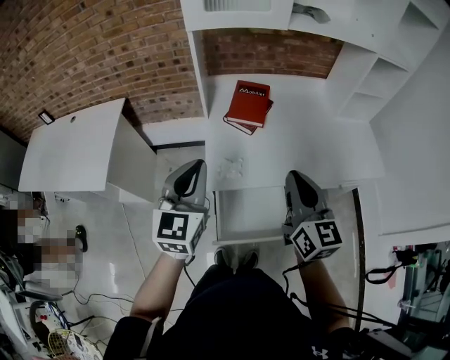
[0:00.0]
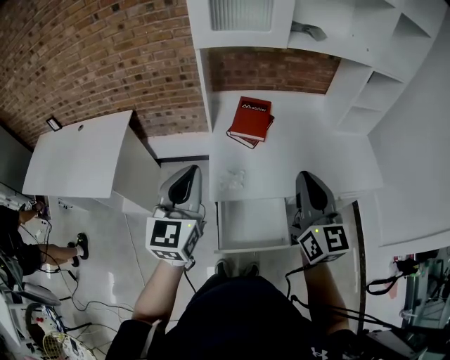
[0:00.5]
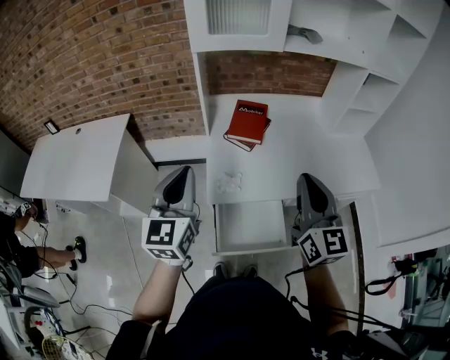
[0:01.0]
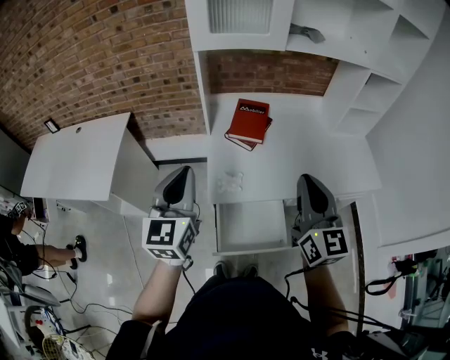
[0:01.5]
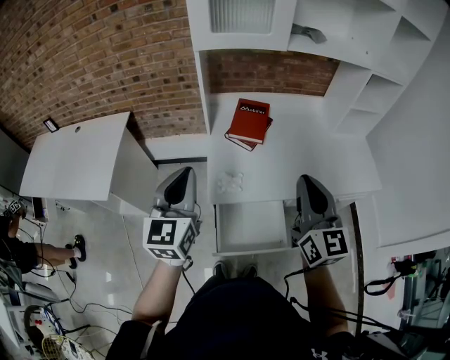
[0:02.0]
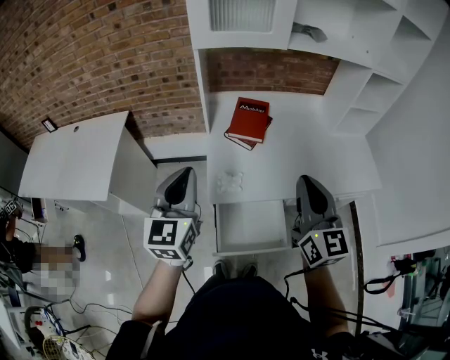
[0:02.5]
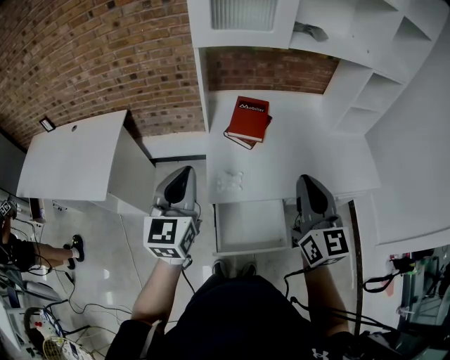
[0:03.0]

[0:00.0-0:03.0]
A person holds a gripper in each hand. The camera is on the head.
0:00.0 to 0:01.5: The right gripper heads upward, covering approximately 5 cm. Meanwhile the left gripper shifts by roughly 5 cm.
0:01.5 to 0:03.0: The grippers move only a little.

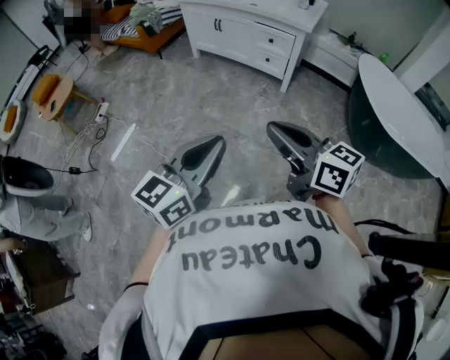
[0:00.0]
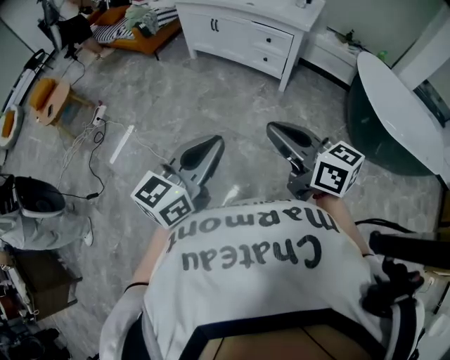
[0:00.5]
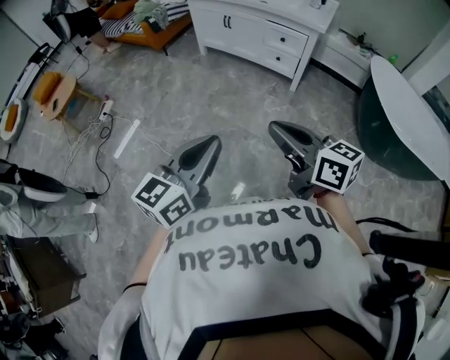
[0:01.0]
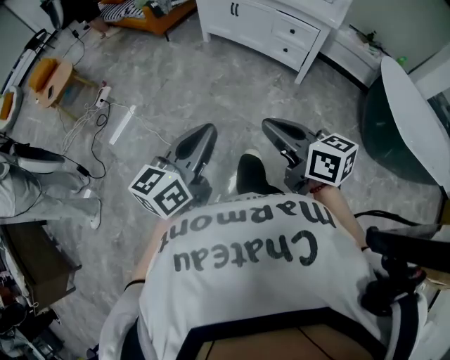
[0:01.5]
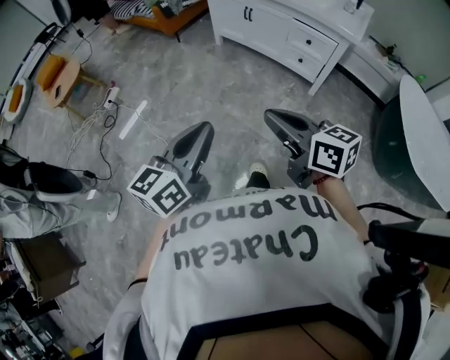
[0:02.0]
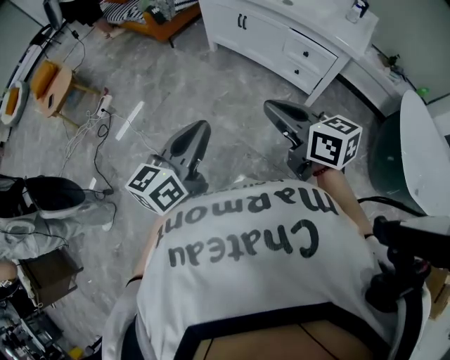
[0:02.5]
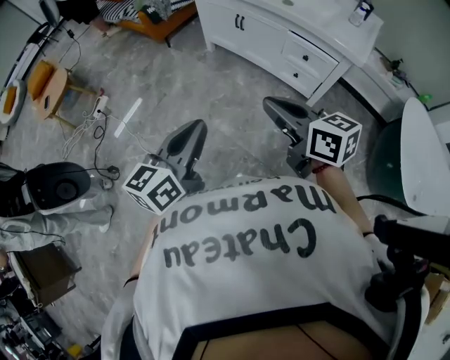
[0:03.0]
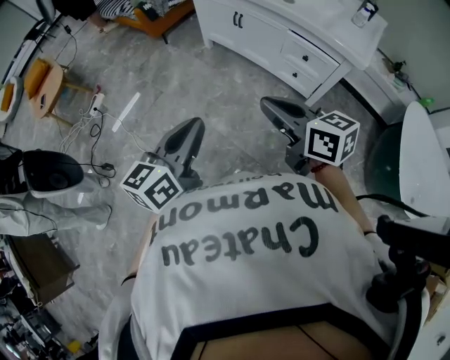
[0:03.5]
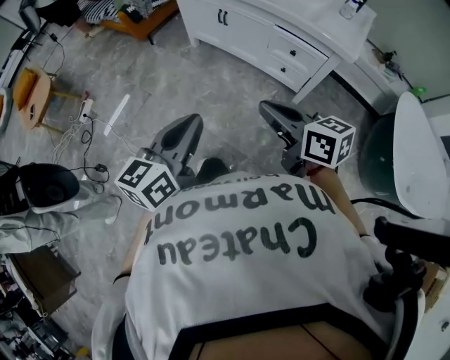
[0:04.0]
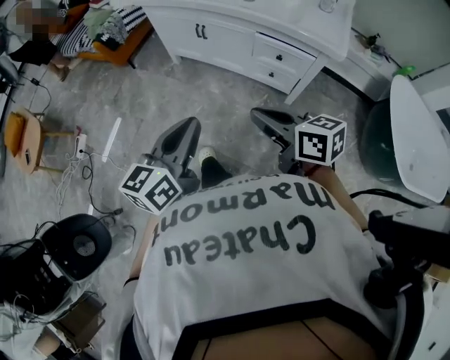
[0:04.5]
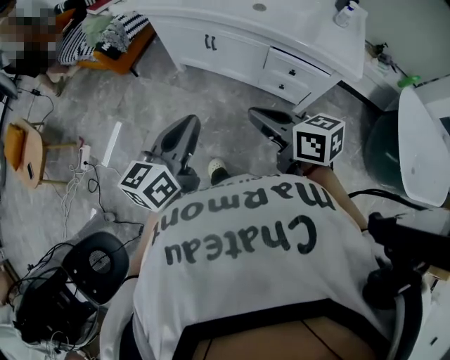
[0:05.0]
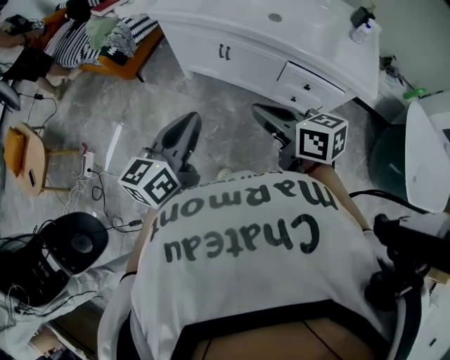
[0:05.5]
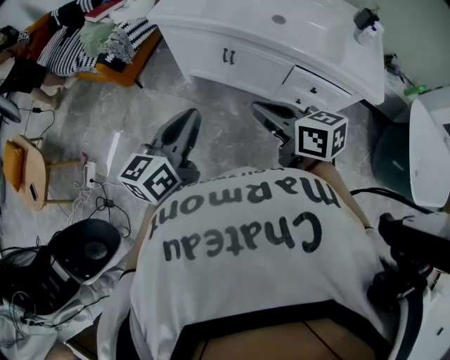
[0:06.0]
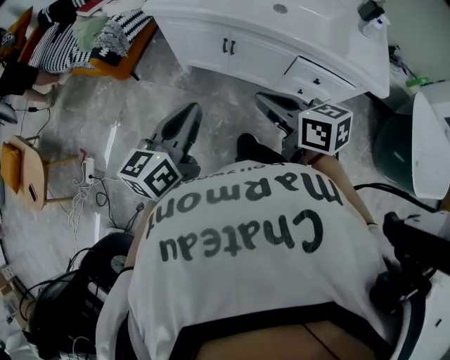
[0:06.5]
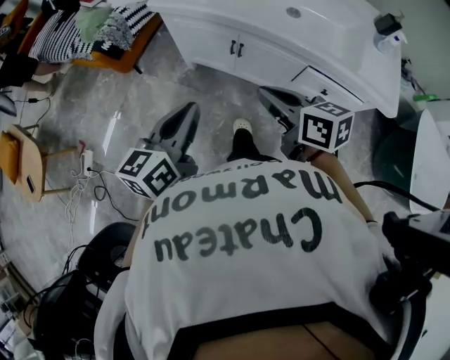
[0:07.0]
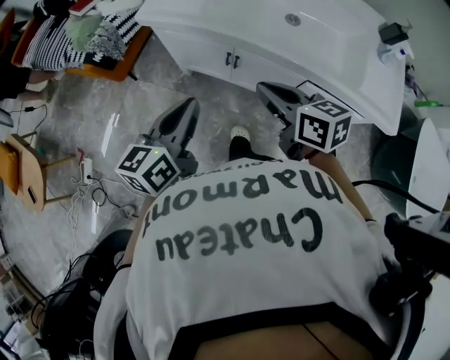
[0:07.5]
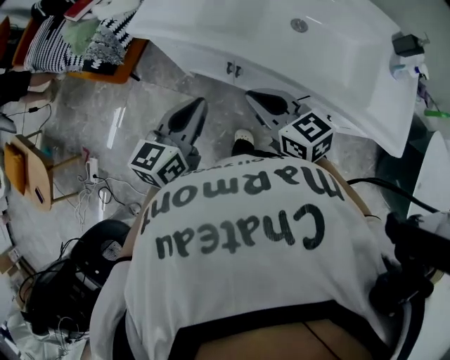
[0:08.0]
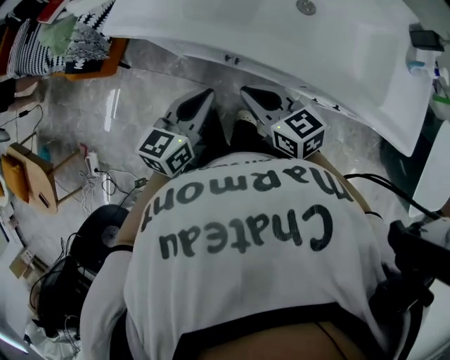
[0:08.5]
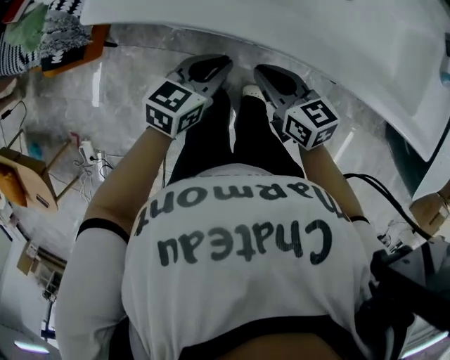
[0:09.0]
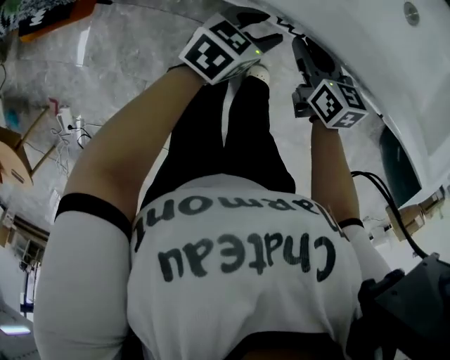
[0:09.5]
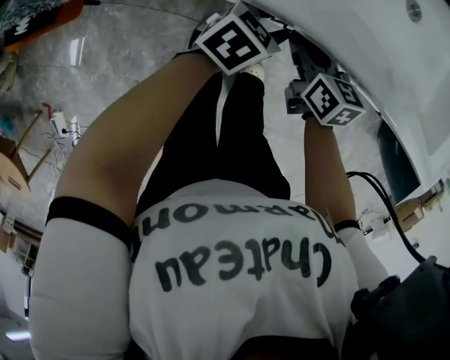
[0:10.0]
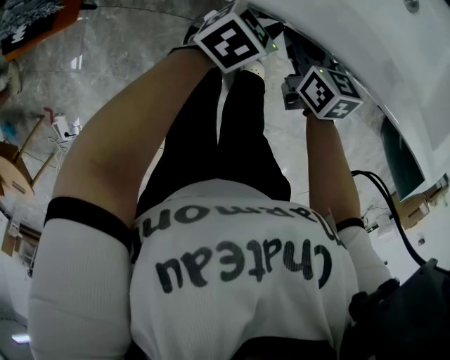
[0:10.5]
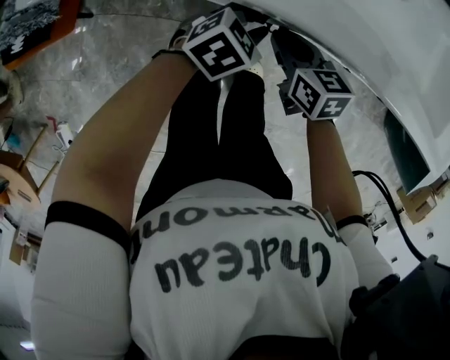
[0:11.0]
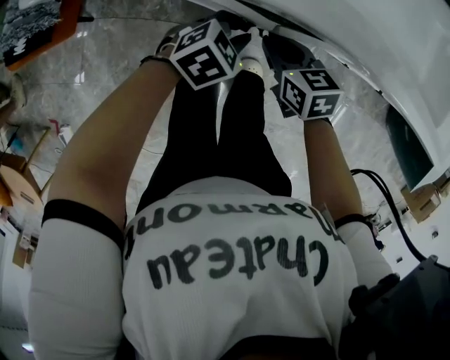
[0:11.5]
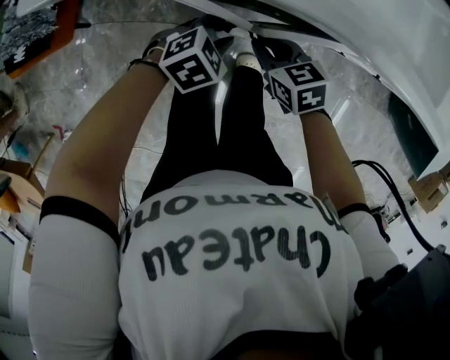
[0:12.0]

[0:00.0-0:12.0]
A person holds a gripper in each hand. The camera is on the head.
0:00.0 to 0:02.0: The right gripper moves forward, some 20 cm, while the left gripper is displaced forward and to the left by about 25 cm.
0:02.0 to 0:04.0: The grippers both shift forward and to the right by roughly 25 cm.
0:04.0 to 0:06.0: The right gripper goes about 30 cm forward and to the left; the left gripper travels forward by about 35 cm.
0:06.0 to 0:08.0: The grippers both shift forward by roughly 25 cm.
0:08.0 to 0:10.0: Both grippers travel together downward, some 30 cm. The right gripper turns by roughly 40 degrees, and opens. Meanwhile the left gripper swivels approximately 50 degrees, and opens.
0:10.0 to 0:12.0: Both grippers travel together backward, about 10 cm. The right gripper changes its angle by roughly 20 degrees. Meanwhile the left gripper swivels some 30 degrees, and closes its fingers.

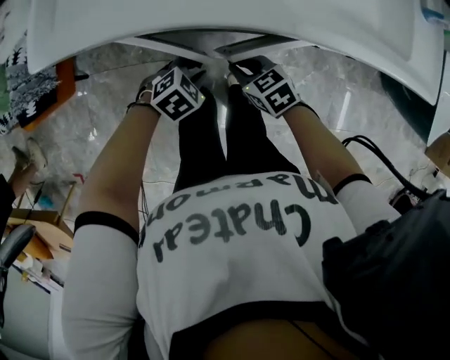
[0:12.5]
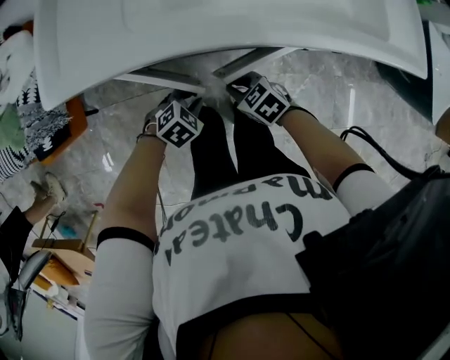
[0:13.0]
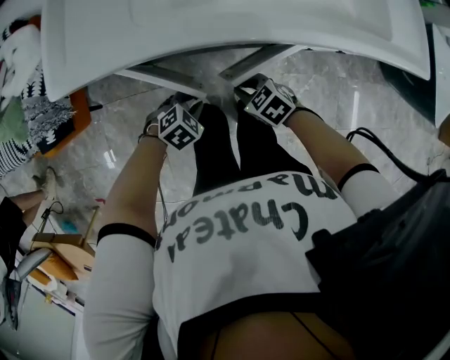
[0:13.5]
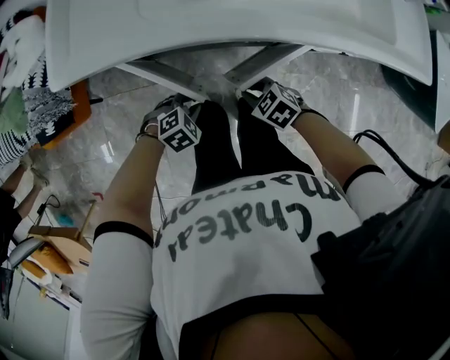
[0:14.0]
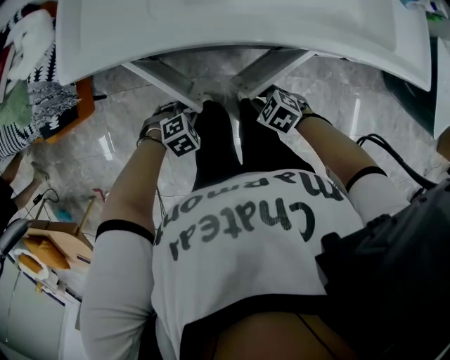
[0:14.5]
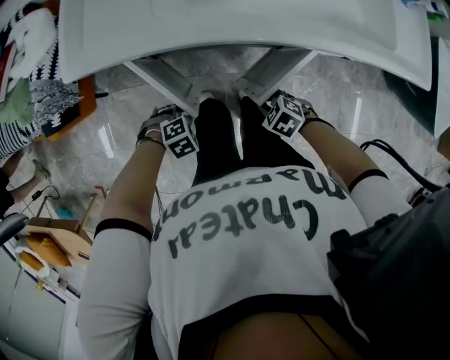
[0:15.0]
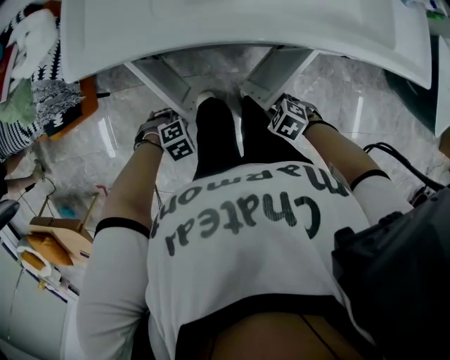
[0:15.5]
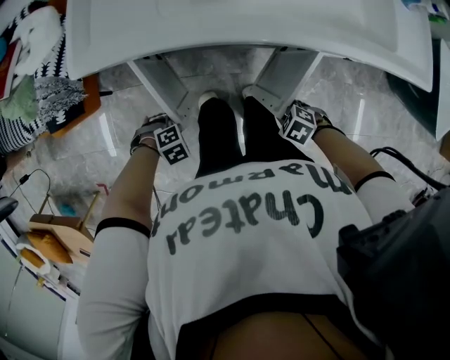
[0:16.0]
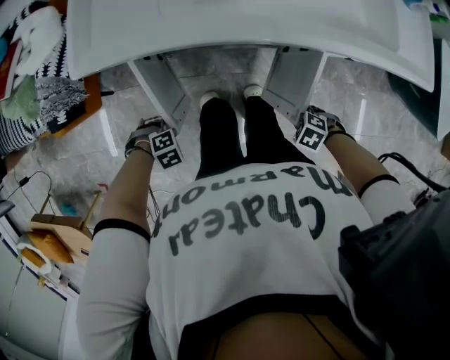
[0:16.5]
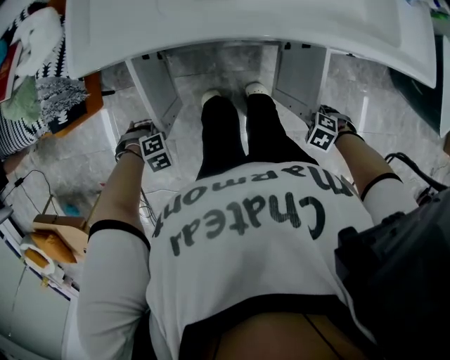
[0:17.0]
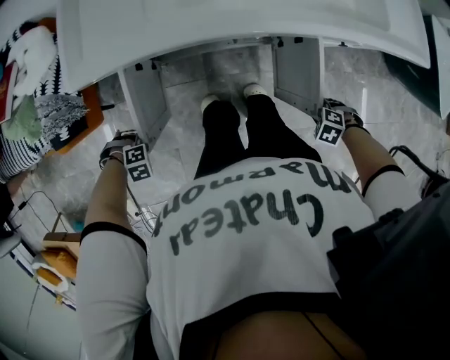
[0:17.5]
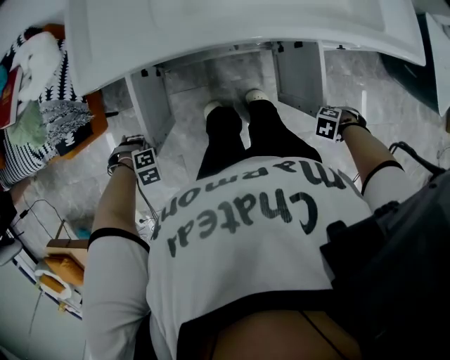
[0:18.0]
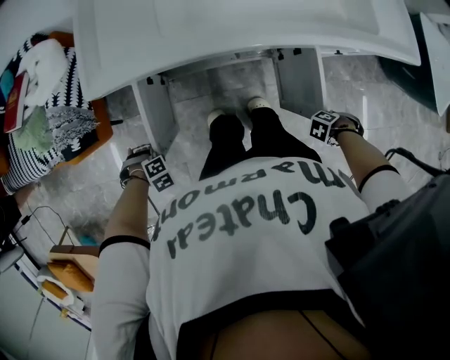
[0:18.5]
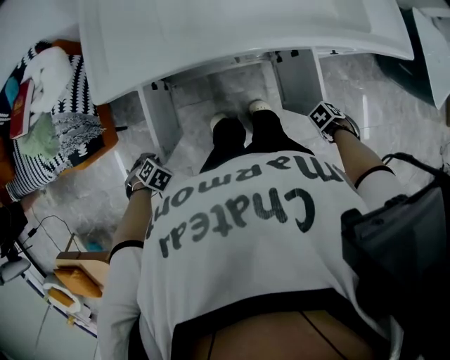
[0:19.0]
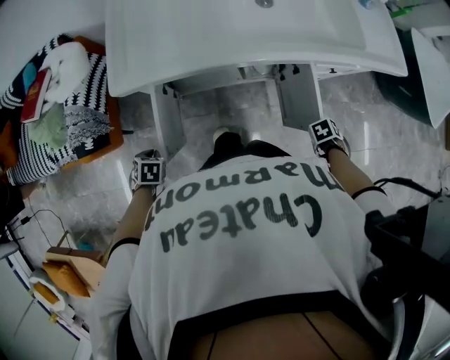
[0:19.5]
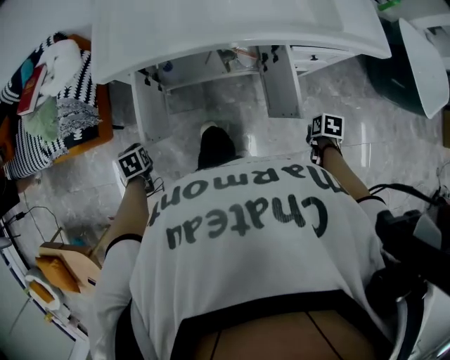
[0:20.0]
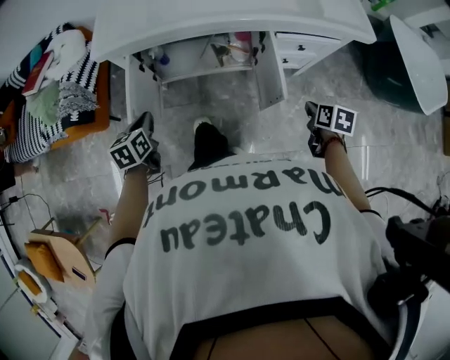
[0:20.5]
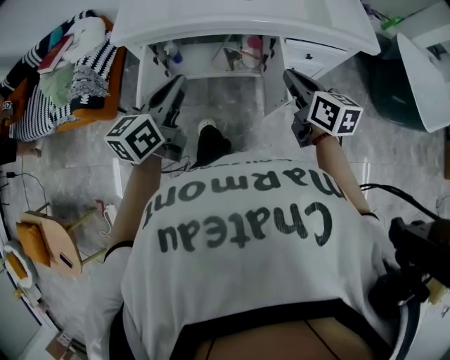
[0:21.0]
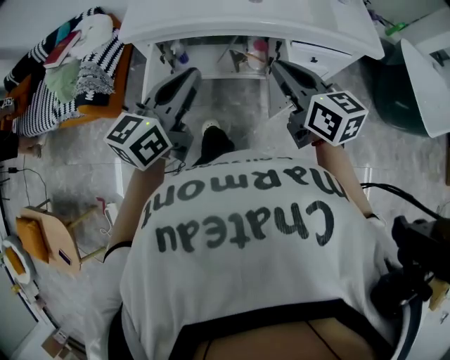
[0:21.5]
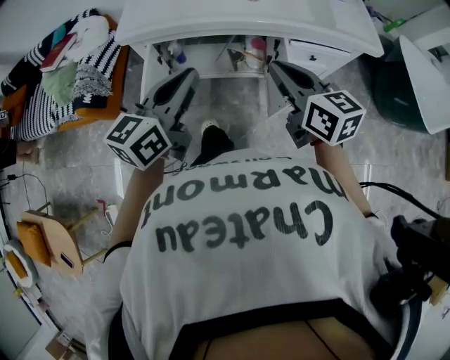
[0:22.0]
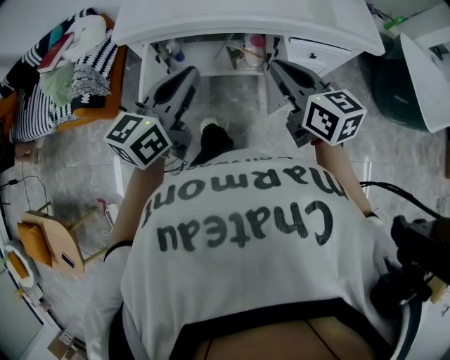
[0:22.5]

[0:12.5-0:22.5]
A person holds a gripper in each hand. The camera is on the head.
0:12.5 to 0:14.5: The left gripper moves some 10 cm; the right gripper moves some 10 cm, and swivels approximately 20 degrees.
0:14.5 to 0:16.5: The right gripper moves about 15 cm. Meanwhile the left gripper ends up approximately 10 cm from where it was.
0:16.5 to 0:18.5: The right gripper changes place by some 15 cm, and changes its angle by some 30 degrees, while the left gripper changes place by some 10 cm.
0:18.5 to 0:20.5: The two grippers go roughly 20 cm upward. The left gripper rotates around the line of its fingers by some 90 degrees, counterclockwise from behind, while the right gripper changes its angle by some 100 degrees.
0:20.5 to 0:22.5: The right gripper moves upward and to the left, roughly 30 cm, and tips its fingers upward by some 40 degrees. The left gripper goes some 25 cm upward and to the right, and angles its fingers upward, by roughly 40 degrees.

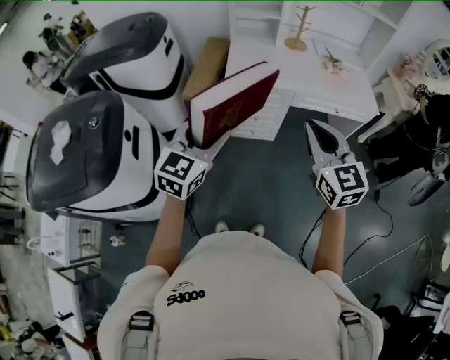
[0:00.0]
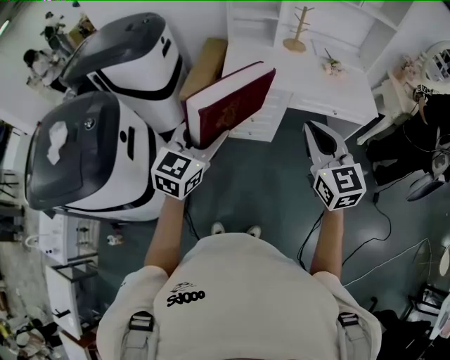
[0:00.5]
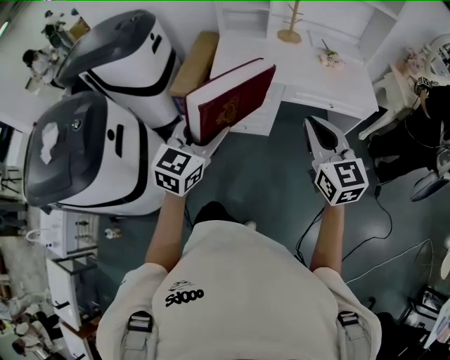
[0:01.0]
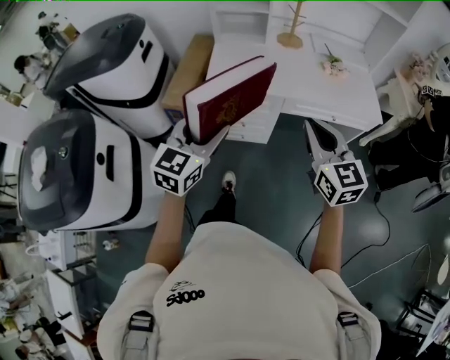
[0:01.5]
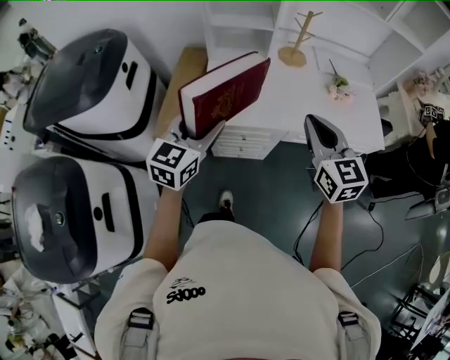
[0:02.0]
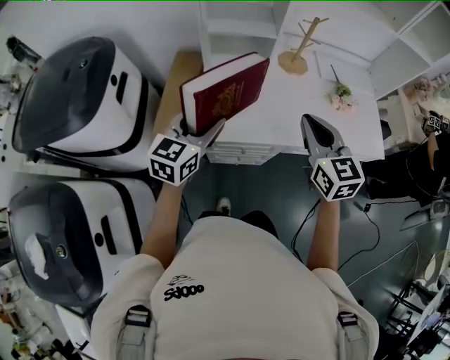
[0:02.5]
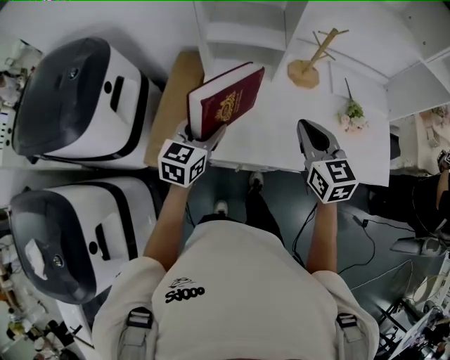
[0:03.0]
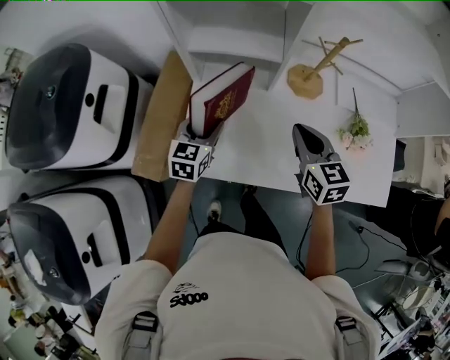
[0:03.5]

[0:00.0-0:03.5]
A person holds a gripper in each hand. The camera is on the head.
0:00.0 to 0:02.0: The two grippers go roughly 35 cm forward.
0:02.0 to 0:03.5: Both grippers move forward and downward, some 35 cm. The left gripper swivels approximately 20 degrees.
